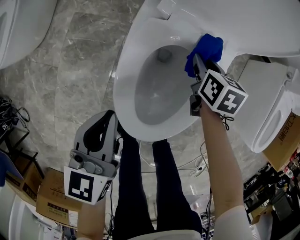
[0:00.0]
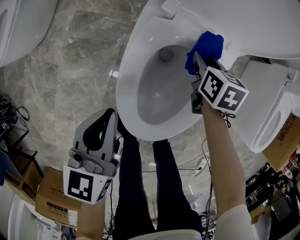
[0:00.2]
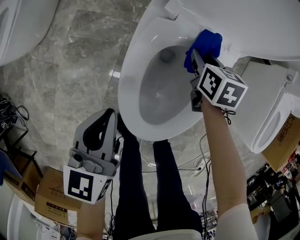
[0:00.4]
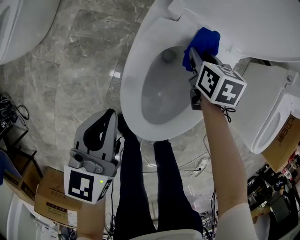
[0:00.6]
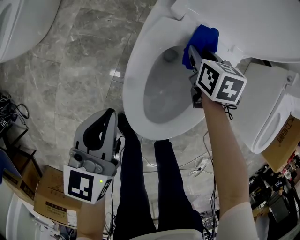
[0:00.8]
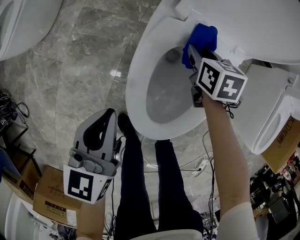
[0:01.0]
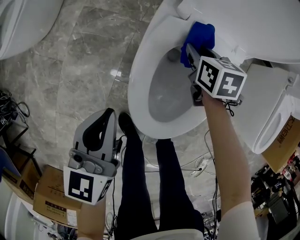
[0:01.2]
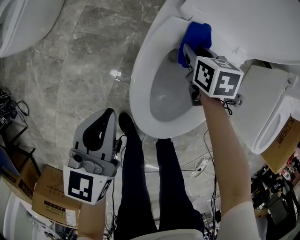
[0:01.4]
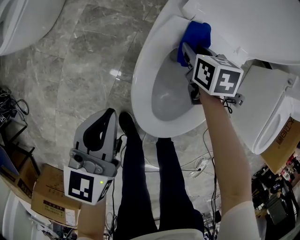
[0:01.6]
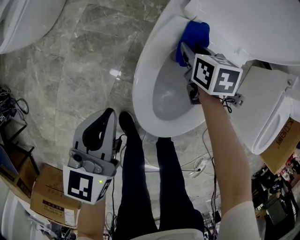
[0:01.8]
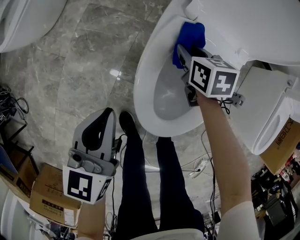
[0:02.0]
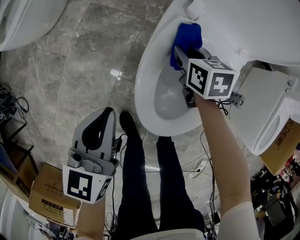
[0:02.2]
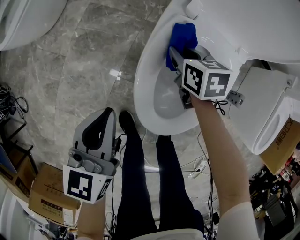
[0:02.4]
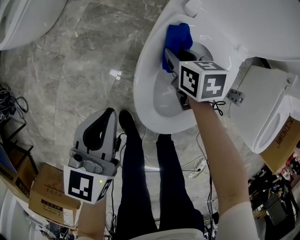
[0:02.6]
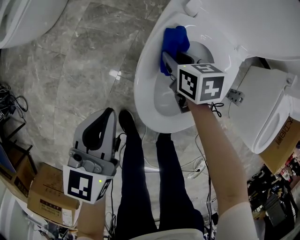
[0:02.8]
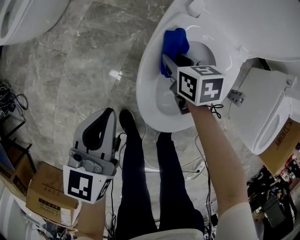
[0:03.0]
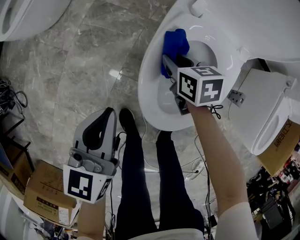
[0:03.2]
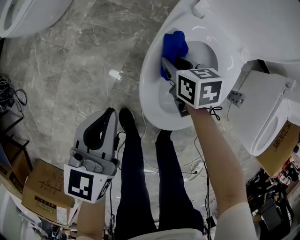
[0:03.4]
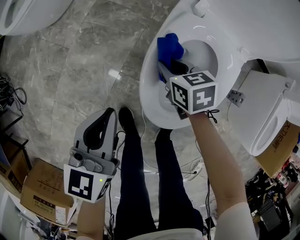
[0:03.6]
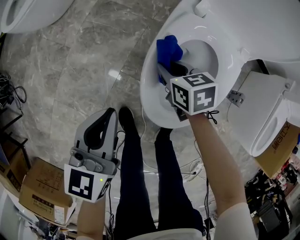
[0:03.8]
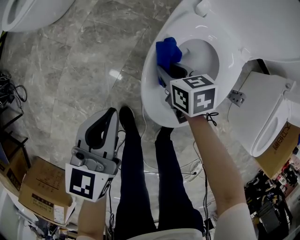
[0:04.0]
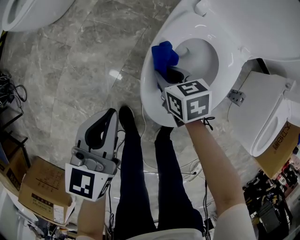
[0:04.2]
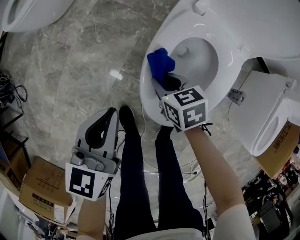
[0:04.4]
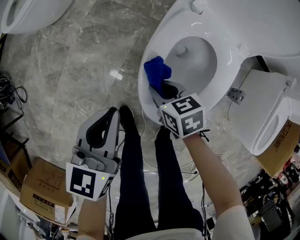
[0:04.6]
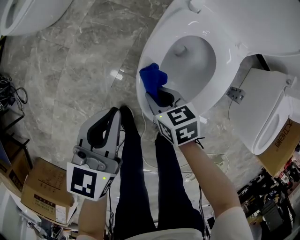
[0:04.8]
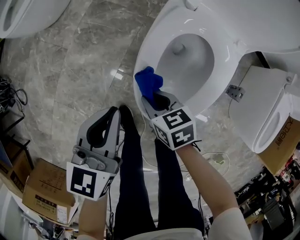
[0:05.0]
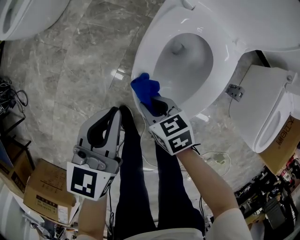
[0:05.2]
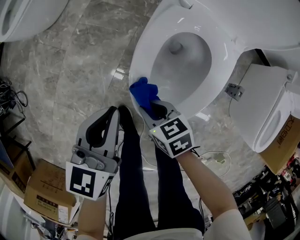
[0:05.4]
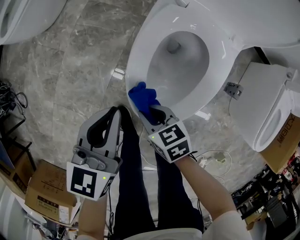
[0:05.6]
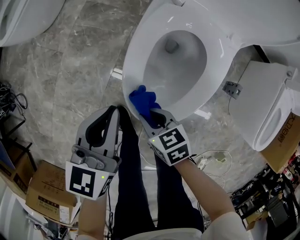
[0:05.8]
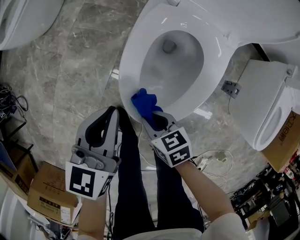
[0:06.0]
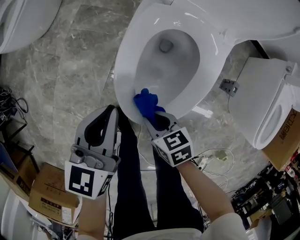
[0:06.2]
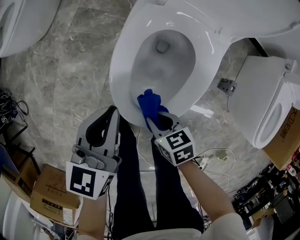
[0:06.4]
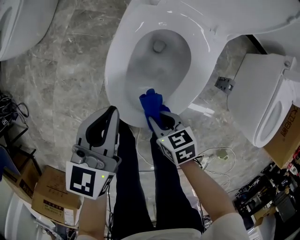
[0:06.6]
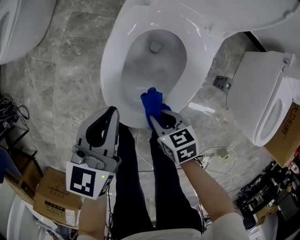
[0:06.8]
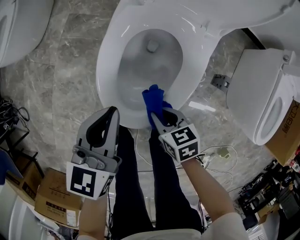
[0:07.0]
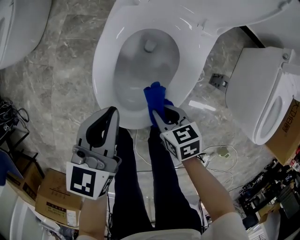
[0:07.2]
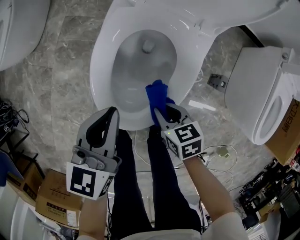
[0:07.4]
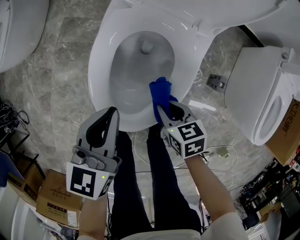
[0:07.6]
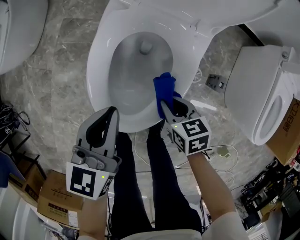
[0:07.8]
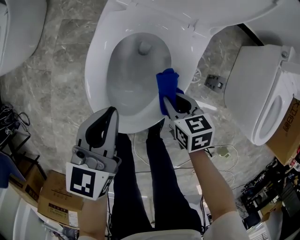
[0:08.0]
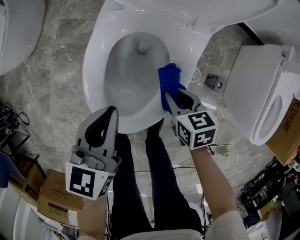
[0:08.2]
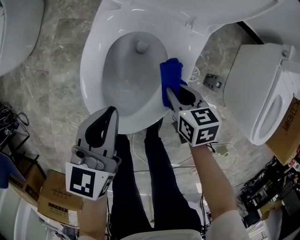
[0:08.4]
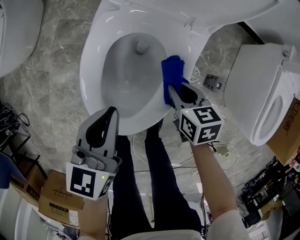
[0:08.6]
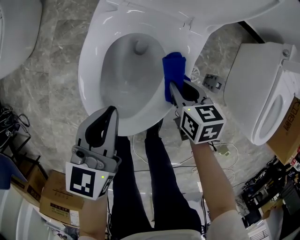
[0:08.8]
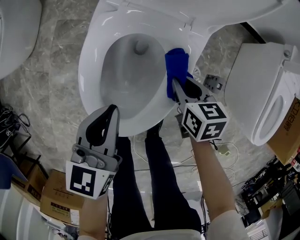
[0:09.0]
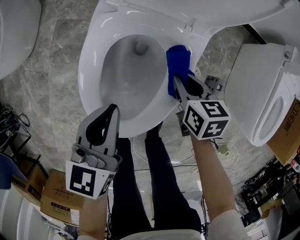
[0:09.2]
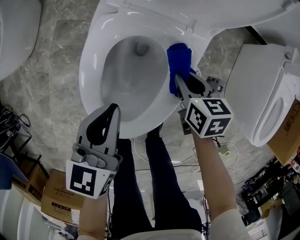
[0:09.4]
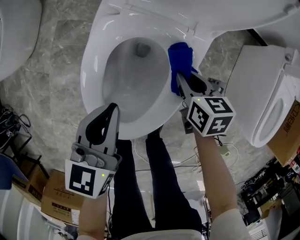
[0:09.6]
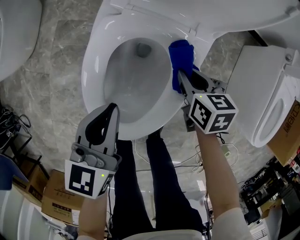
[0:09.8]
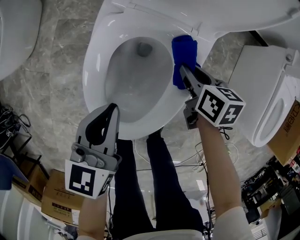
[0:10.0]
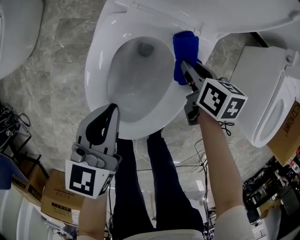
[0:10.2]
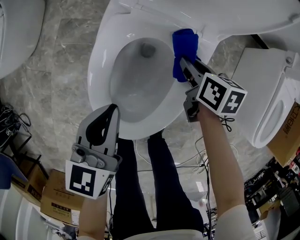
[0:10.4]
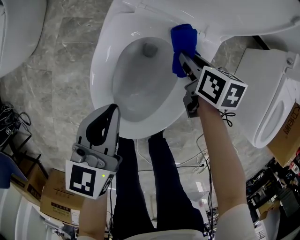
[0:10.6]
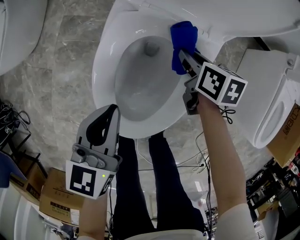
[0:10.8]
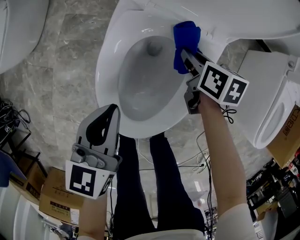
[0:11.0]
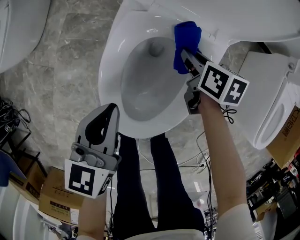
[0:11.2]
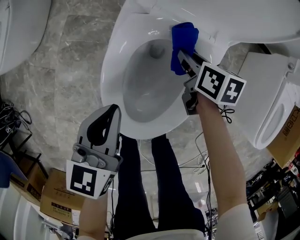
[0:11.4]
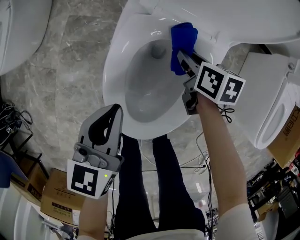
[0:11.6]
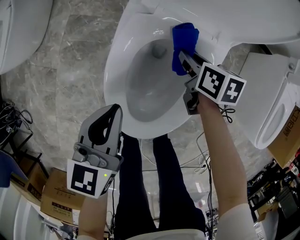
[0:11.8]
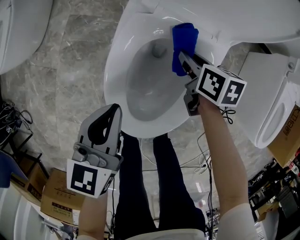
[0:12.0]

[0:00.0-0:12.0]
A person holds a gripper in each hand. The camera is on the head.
0:00.0 to 0:01.6: The right gripper heads to the left, covering about 10 cm; the left gripper heads to the left, covering some 5 cm.
0:01.6 to 0:03.0: The right gripper heads to the left and backward, covering approximately 10 cm.
0:03.0 to 0:04.4: The right gripper moves backward and to the left, approximately 10 cm.
0:04.4 to 0:06.0: The left gripper shifts roughly 5 cm to the right; the right gripper moves backward, approximately 15 cm.
0:06.0 to 0:07.6: Both grippers travel together to the right, approximately 15 cm.
0:07.6 to 0:09.0: The right gripper heads forward and to the right, covering some 15 cm.
0:09.0 to 0:10.4: The right gripper moves forward, roughly 10 cm.
0:10.4 to 0:12.0: The grippers both shift to the left by some 5 cm.

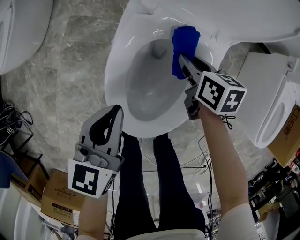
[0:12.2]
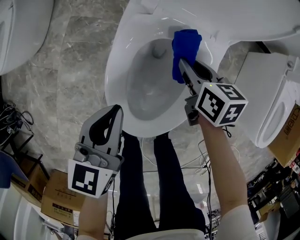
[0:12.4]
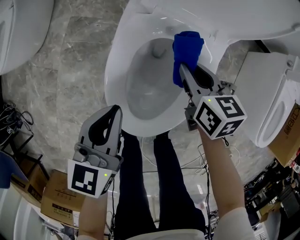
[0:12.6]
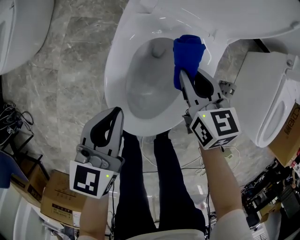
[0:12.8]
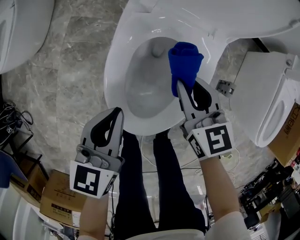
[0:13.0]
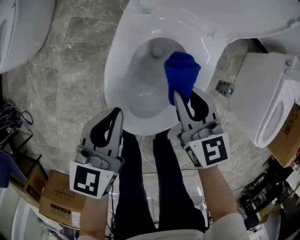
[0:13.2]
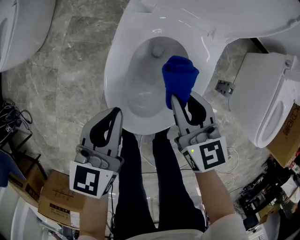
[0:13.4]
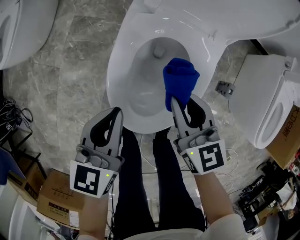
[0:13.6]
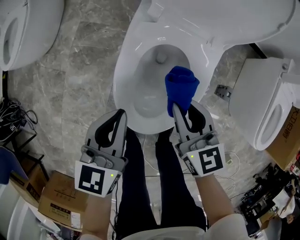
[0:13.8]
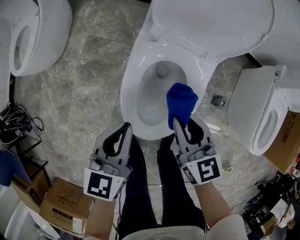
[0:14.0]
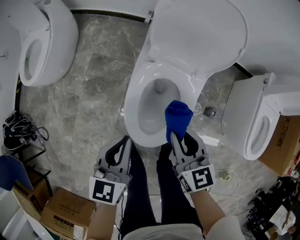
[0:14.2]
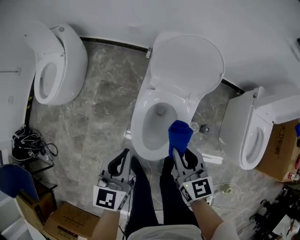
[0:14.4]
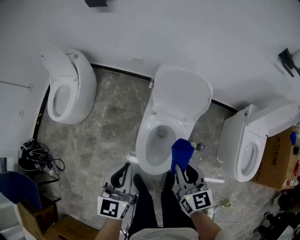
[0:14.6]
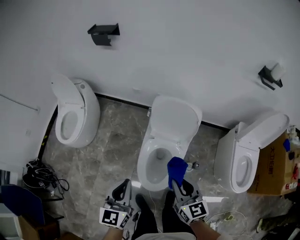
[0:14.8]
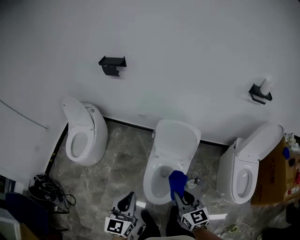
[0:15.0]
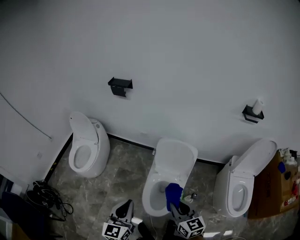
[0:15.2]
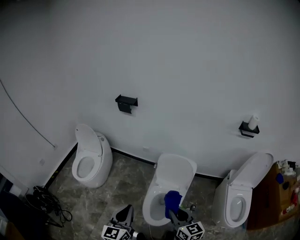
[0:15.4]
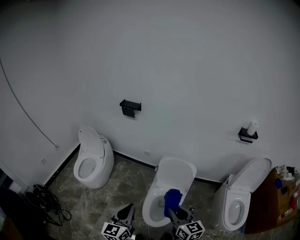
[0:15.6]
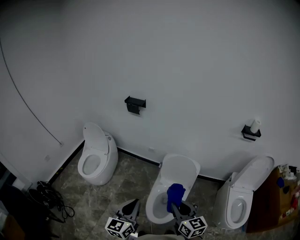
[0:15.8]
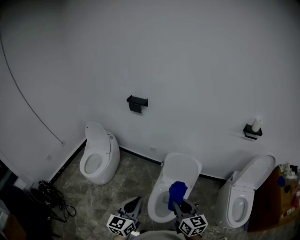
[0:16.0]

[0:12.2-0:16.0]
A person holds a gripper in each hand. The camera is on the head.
0:12.2 to 0:13.4: The right gripper shifts roughly 15 cm backward and upward, and turns by some 30 degrees.
0:13.4 to 0:14.8: Both grippers move upward, roughly 40 cm. The left gripper rotates roughly 20 degrees.
0:14.8 to 0:16.0: The left gripper heads upward and backward, covering some 20 cm; the right gripper goes approximately 20 cm upward.

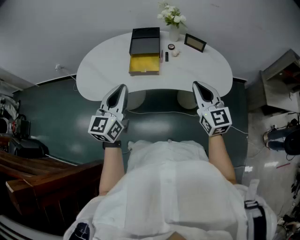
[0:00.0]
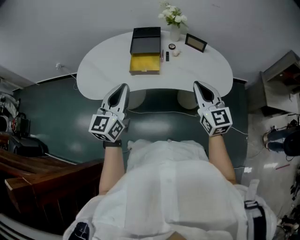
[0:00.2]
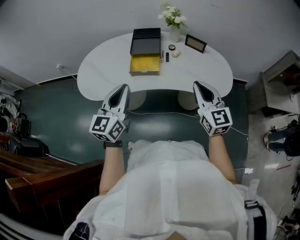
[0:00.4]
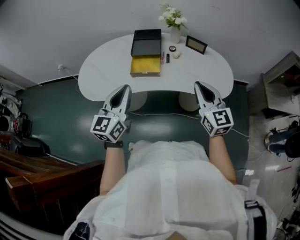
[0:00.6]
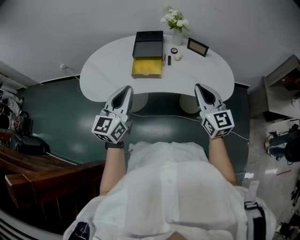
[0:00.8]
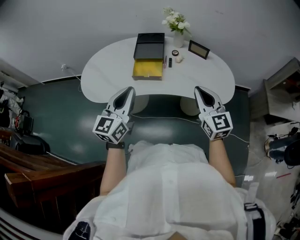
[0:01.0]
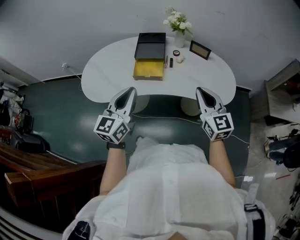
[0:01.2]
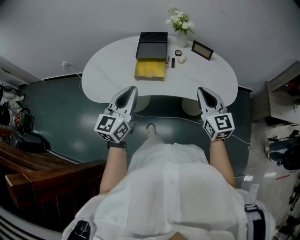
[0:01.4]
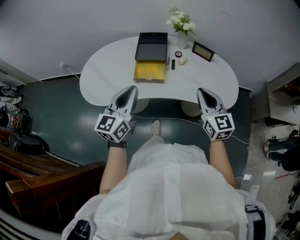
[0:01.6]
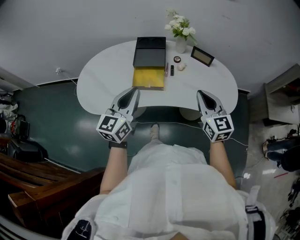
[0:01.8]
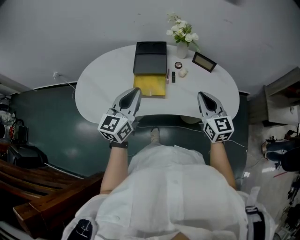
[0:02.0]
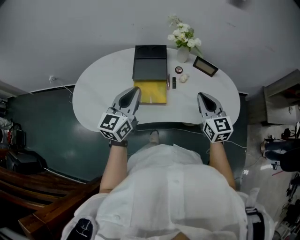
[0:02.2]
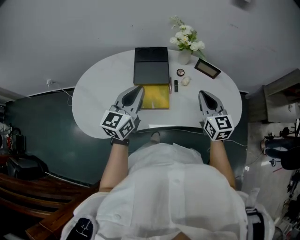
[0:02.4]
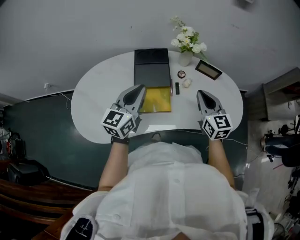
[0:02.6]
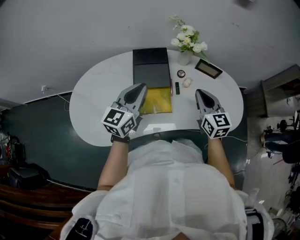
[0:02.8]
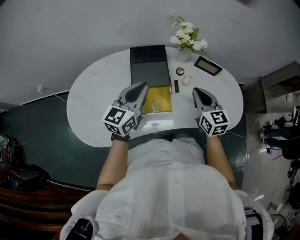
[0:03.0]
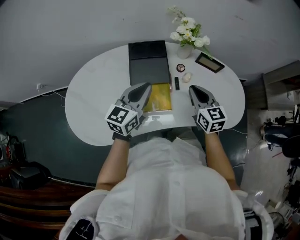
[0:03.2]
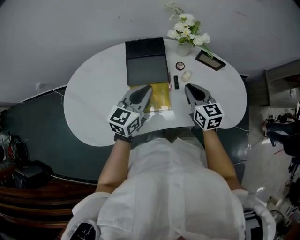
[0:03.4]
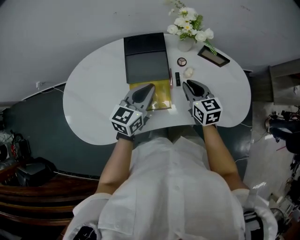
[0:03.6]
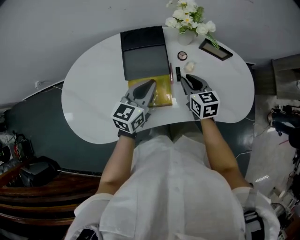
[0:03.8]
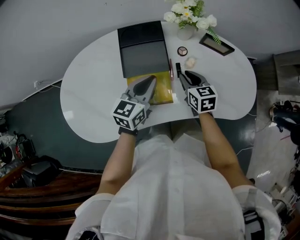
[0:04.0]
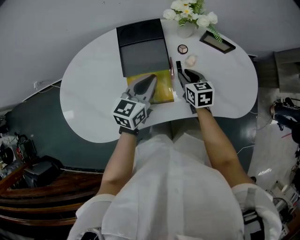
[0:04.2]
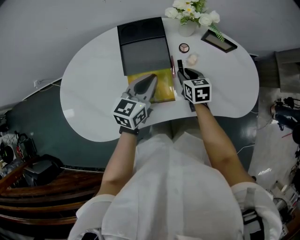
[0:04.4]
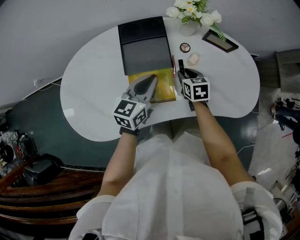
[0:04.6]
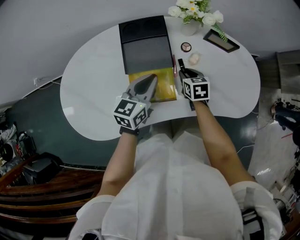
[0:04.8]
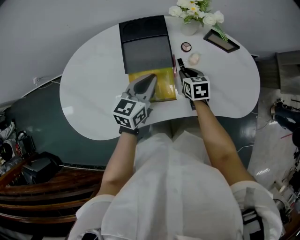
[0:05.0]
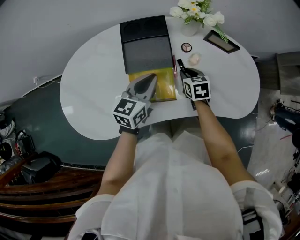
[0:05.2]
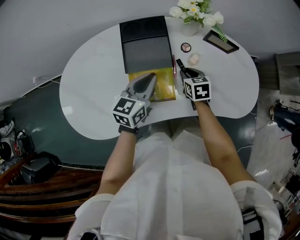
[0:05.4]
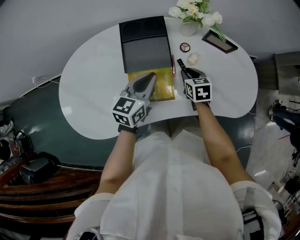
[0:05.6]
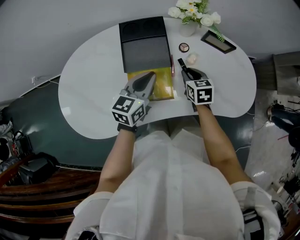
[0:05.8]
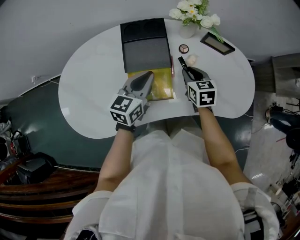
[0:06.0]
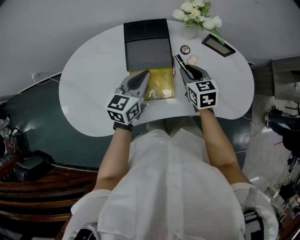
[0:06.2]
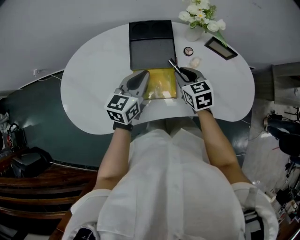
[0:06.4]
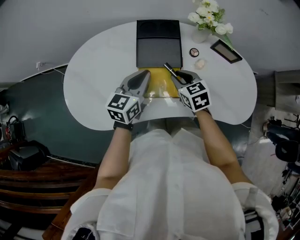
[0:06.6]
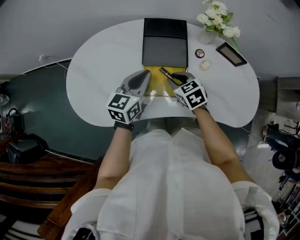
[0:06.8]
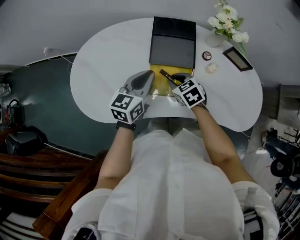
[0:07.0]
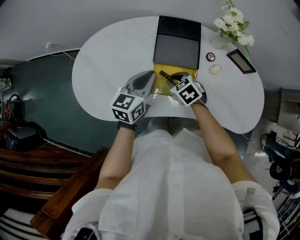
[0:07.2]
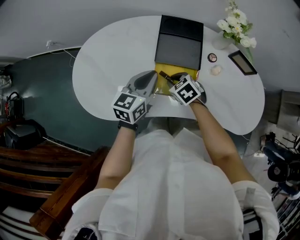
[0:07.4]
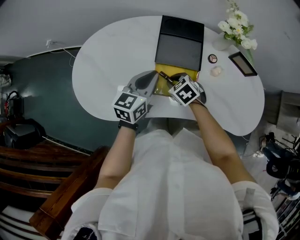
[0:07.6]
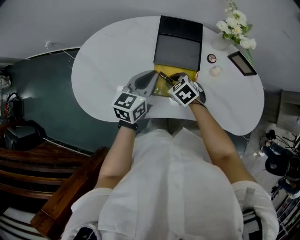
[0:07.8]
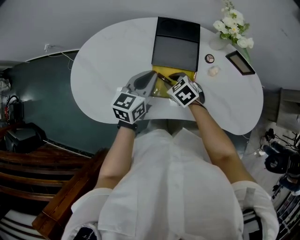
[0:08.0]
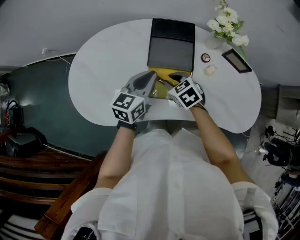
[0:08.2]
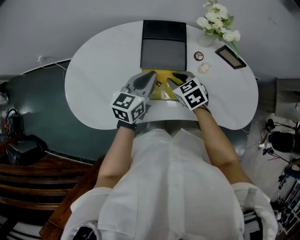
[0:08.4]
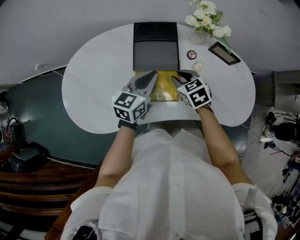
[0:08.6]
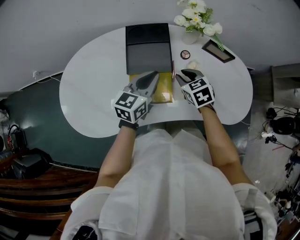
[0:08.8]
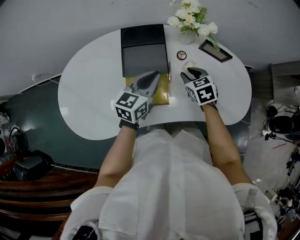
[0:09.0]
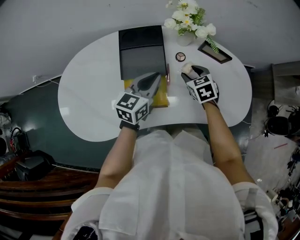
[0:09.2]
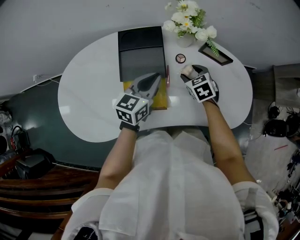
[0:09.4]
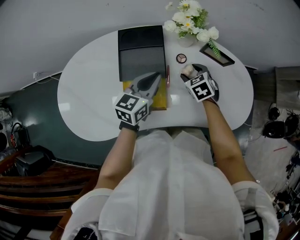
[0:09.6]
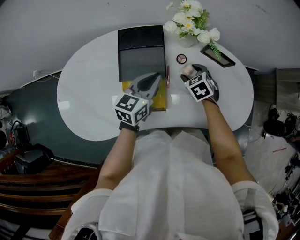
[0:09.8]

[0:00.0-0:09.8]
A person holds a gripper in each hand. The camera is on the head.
0:00.0 to 0:01.4: There are only small adjustments of the grippers.
0:01.4 to 0:02.8: The grippers both shift forward by roughly 25 cm.
0:02.8 to 0:04.2: The left gripper heads downward and to the right, covering about 15 cm; the right gripper travels downward by about 20 cm, turns by roughly 30 degrees, and opens up.
0:04.2 to 0:05.6: There are only small adjustments of the grippers.
0:05.6 to 0:07.0: The left gripper goes roughly 10 cm to the left. The right gripper is displaced to the left by some 15 cm, and swivels roughly 40 degrees.
0:07.0 to 0:08.4: There are only small adjustments of the grippers.
0:08.4 to 0:09.8: The left gripper shifts roughly 10 cm to the right and forward. Meanwhile the right gripper shifts roughly 20 cm to the right and forward, and opens its fingers.
